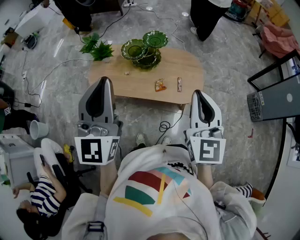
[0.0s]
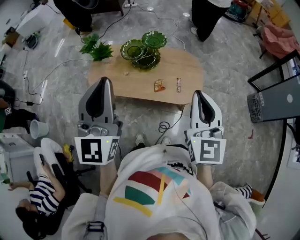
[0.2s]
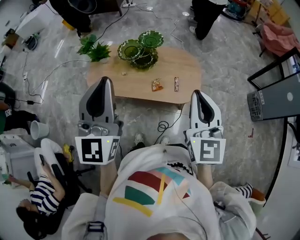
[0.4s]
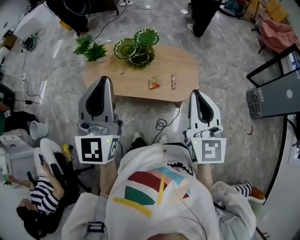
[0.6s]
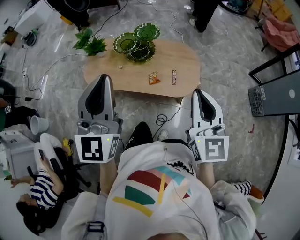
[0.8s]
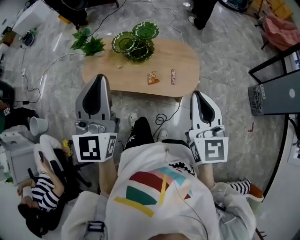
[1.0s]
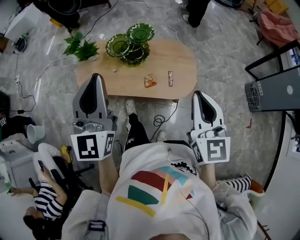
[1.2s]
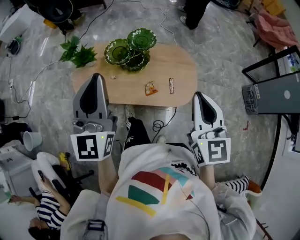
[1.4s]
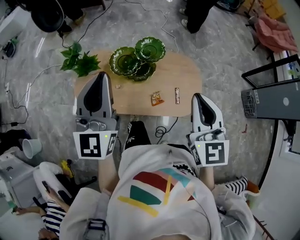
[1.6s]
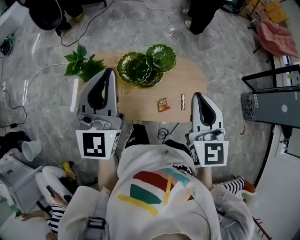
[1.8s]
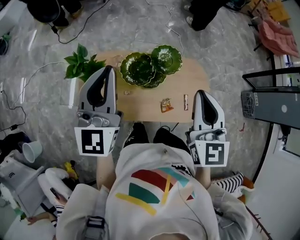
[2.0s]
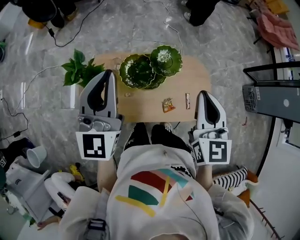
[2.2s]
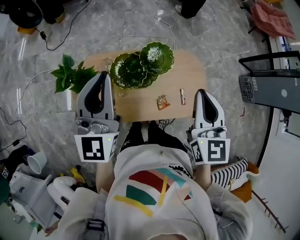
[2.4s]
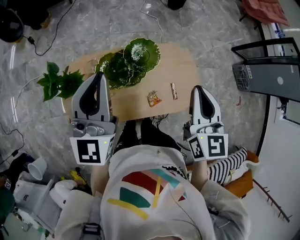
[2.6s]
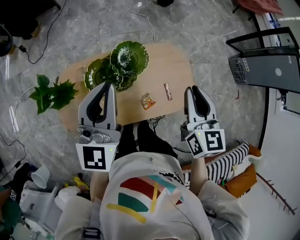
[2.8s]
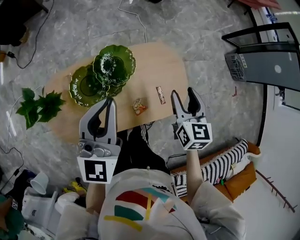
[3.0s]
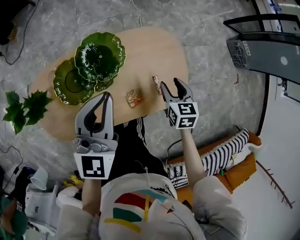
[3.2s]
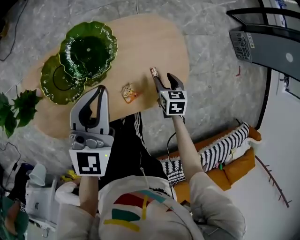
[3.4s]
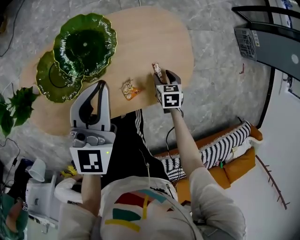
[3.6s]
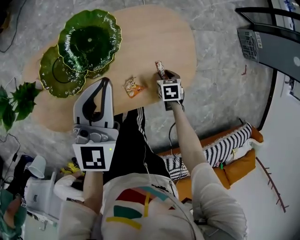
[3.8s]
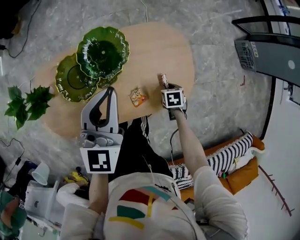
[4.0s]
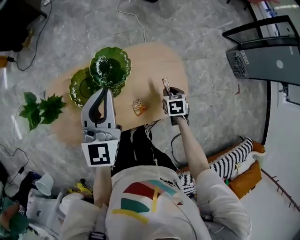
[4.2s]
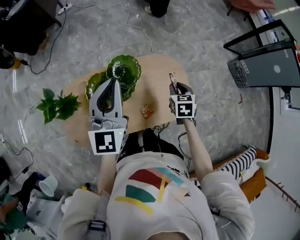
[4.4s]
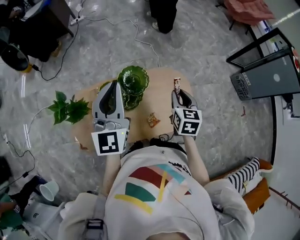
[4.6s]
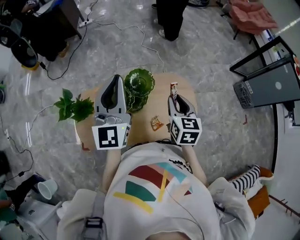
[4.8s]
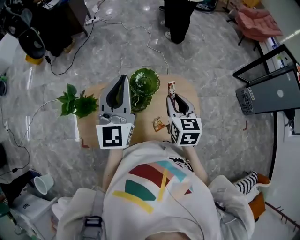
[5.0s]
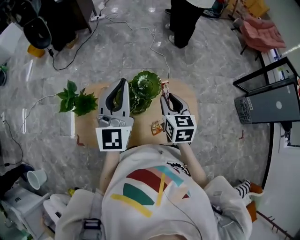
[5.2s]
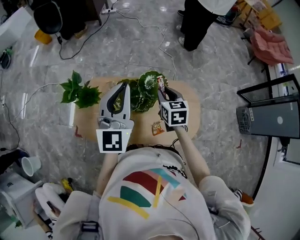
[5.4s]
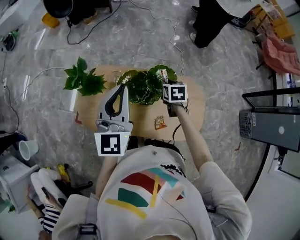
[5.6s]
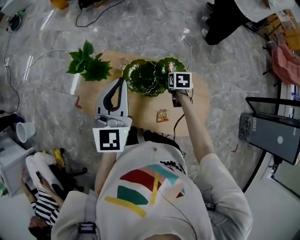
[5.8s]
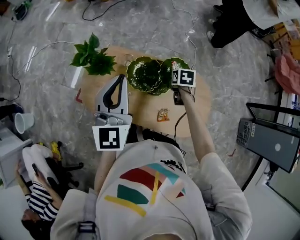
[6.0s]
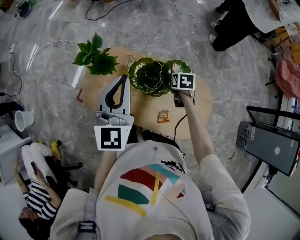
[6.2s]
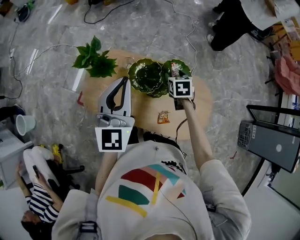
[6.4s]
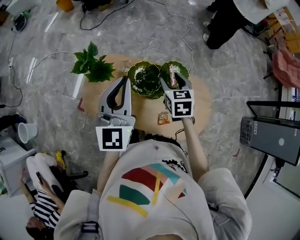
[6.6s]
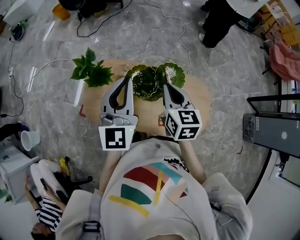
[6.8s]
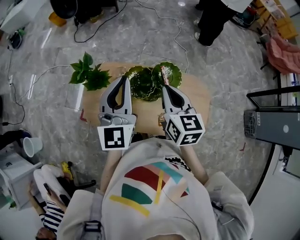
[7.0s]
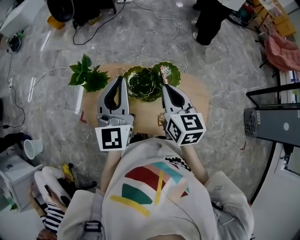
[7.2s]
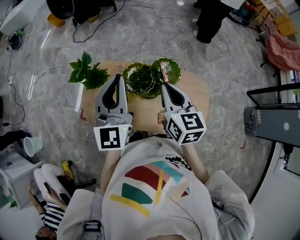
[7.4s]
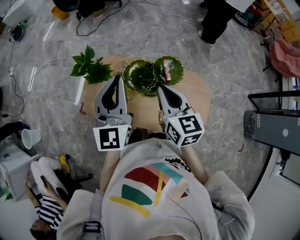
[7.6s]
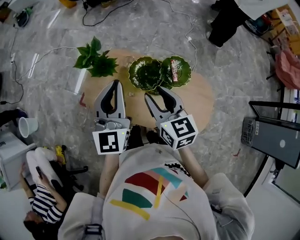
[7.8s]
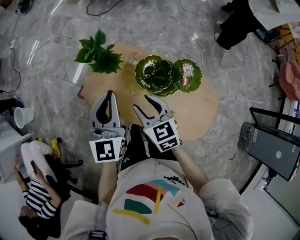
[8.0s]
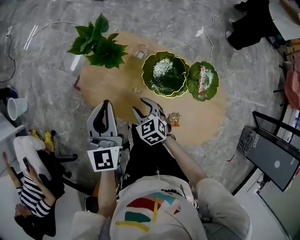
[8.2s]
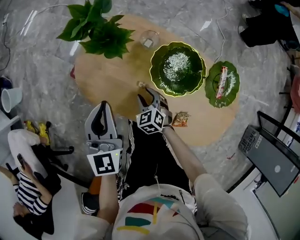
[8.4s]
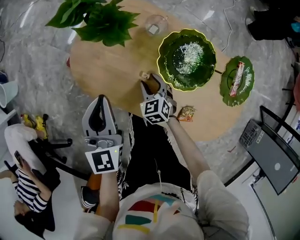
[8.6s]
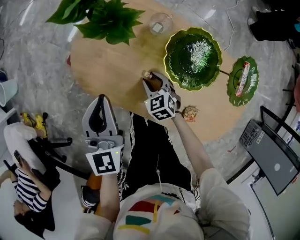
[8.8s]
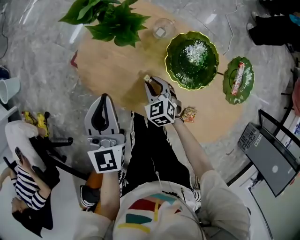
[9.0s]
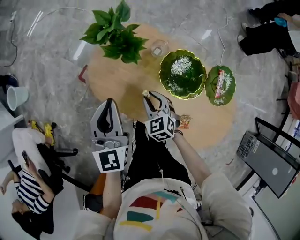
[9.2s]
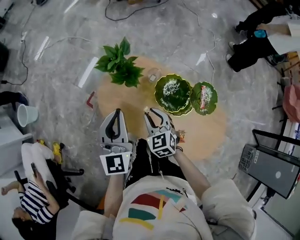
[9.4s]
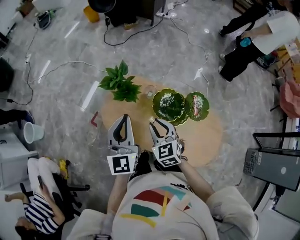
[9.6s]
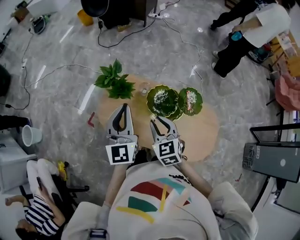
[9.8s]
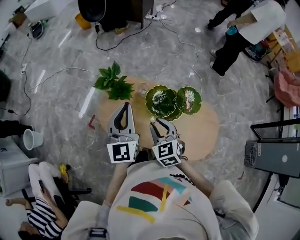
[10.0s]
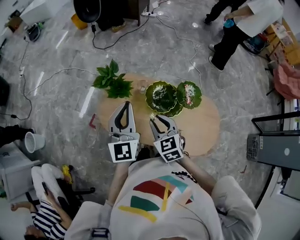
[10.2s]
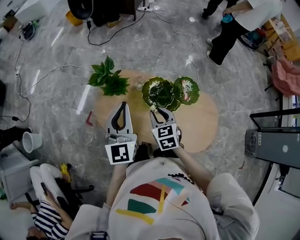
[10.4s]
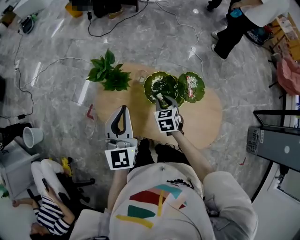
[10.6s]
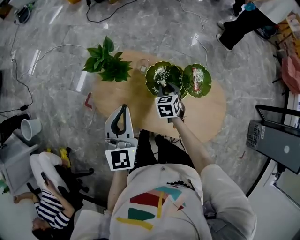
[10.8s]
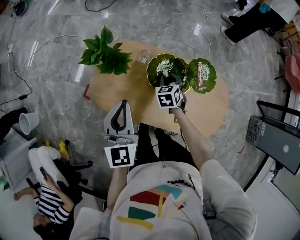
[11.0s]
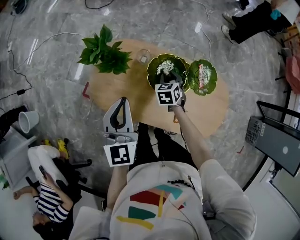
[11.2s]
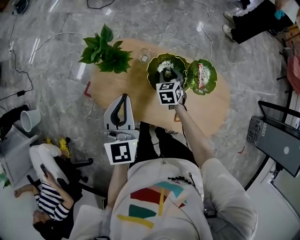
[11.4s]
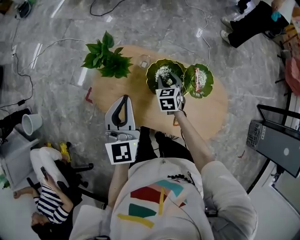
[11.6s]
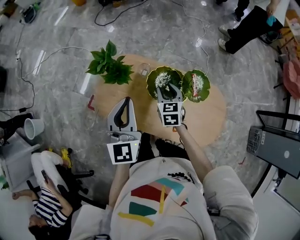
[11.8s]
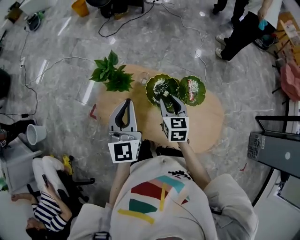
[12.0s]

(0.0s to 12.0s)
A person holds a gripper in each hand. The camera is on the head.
0.0s - 1.6s: The two grippers go roughly 20 cm forward.
1.6s - 3.0s: The right gripper heads downward and forward, covering approximately 25 cm, changes its angle by approximately 40 degrees, and opens; the left gripper heads forward, downward and to the right, covering about 20 cm, and swivels approximately 30 degrees.
3.0s - 4.4s: The left gripper reaches some 15 cm downward, then returns, while the right gripper moves some 40 cm downward and comes back, and closes.
4.4s - 6.0s: The right gripper goes upward and returns, some 20 cm each way, and changes its angle by approximately 30 degrees. The left gripper ends up some 20 cm from where it was, and changes its angle by about 30 degrees.
6.0s - 7.6s: The left gripper changes place by roughly 5 cm. Meanwhile the right gripper moves upward and backward, some 30 cm, tilts its fingers approximately 40 degrees upward, and opens and closes again.
7.6s - 9.0s: The left gripper moves downward and to the left, roughly 35 cm, and swivels roughly 30 degrees. The right gripper shifts roughly 50 cm downward, and angles its fingers downward, by approximately 30 degrees.
9.0s - 10.4s: The grippers both shift upward by some 25 cm. The right gripper turns by roughly 30 degrees, while the left gripper changes its angle by some 20 degrees.
10.4s - 12.0s: The left gripper travels downward and back again, roughly 10 cm each way. Meanwhile the right gripper shifts about 5 cm forward, and moves roughly 15 cm downward and comes back.

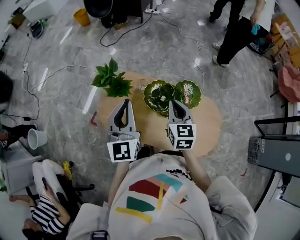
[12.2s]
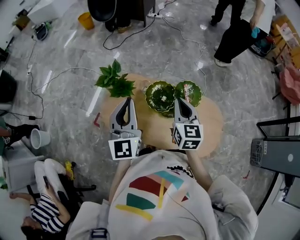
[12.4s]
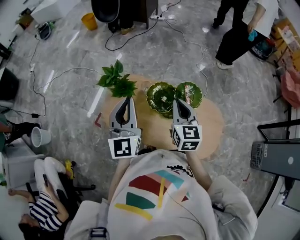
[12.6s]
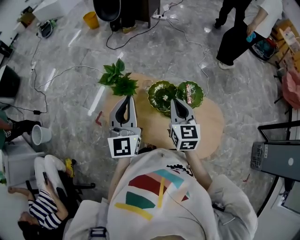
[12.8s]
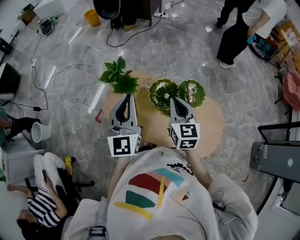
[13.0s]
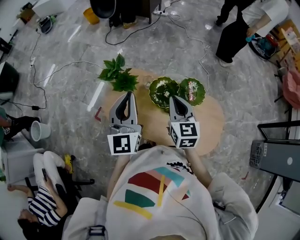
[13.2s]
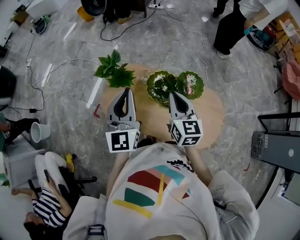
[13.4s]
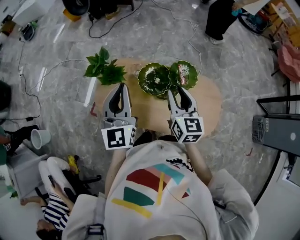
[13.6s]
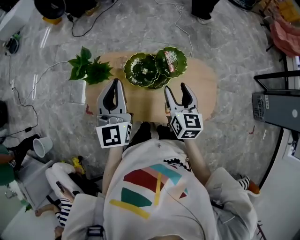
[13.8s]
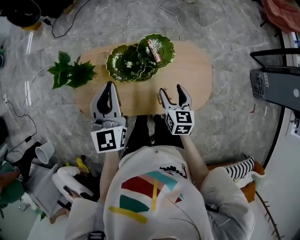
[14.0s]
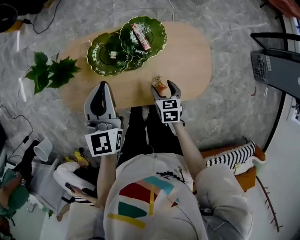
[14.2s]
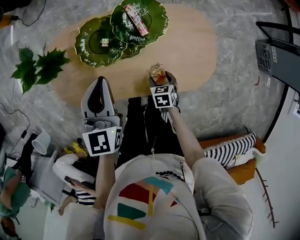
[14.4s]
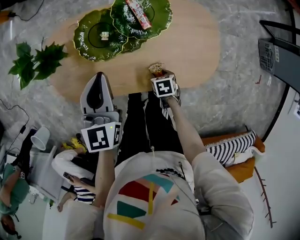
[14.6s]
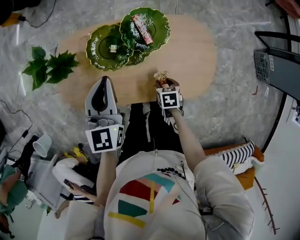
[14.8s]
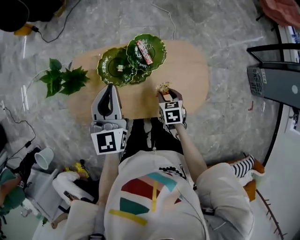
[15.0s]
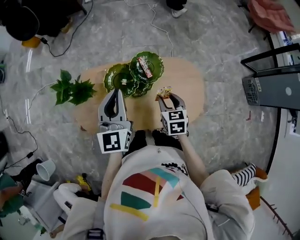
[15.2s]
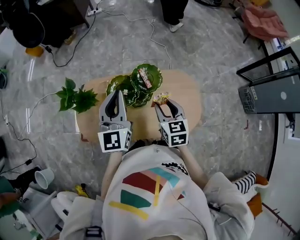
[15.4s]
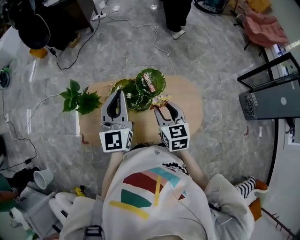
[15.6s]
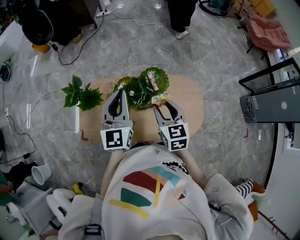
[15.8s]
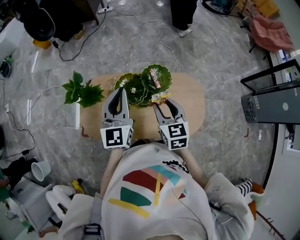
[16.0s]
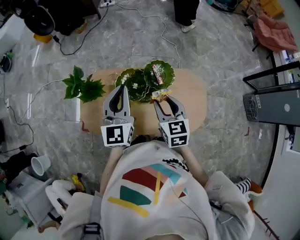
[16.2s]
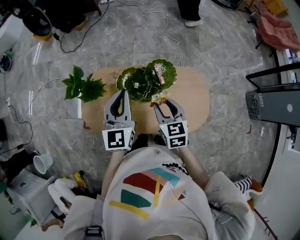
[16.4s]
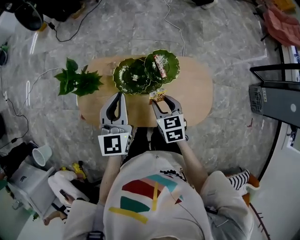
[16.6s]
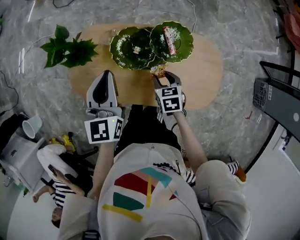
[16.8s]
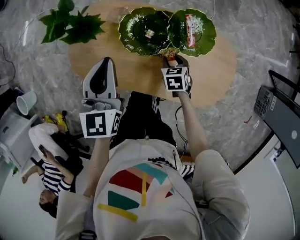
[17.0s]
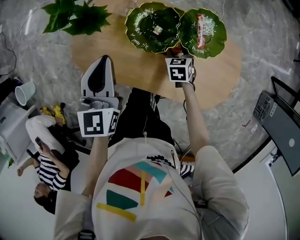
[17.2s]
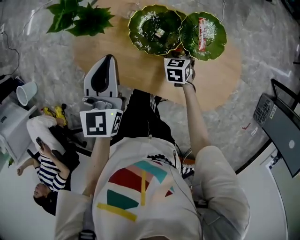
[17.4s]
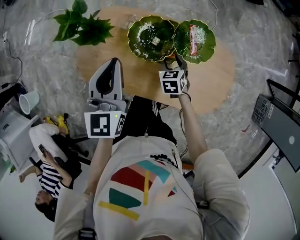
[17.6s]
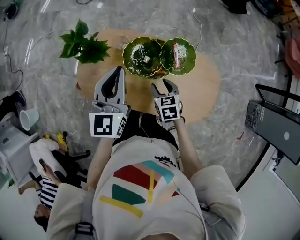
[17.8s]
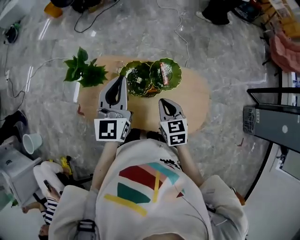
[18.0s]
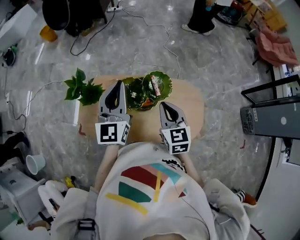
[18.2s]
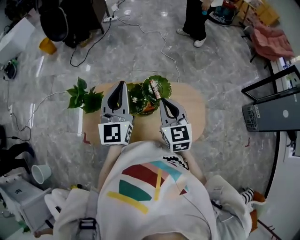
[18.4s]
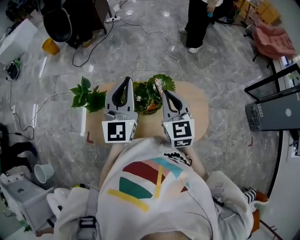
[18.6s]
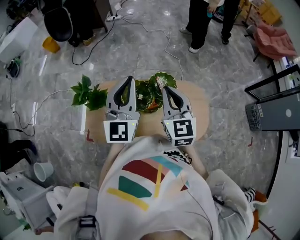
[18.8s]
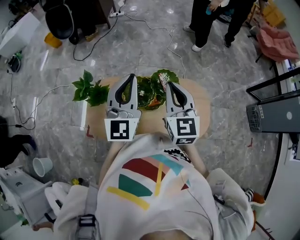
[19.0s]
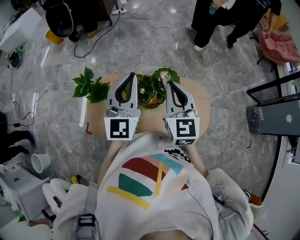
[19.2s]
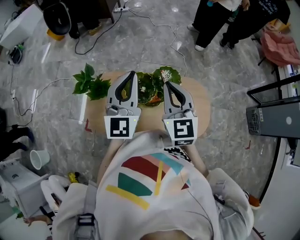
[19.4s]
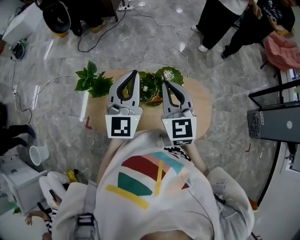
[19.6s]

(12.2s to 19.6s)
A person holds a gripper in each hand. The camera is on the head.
12.2s - 13.6s: There are only small adjustments of the grippers.
13.6s - 15.2s: Both grippers move to the right, approximately 15 cm. The left gripper reaches some 20 cm downward, then returns. Meanwhile the right gripper goes downward and returns, roughly 40 cm each way, swivels roughly 30 degrees, and opens and closes again.
15.2s - 16.6s: The right gripper travels to the left by roughly 10 cm, and goes upward and returns, roughly 15 cm each way. The left gripper shifts by about 5 cm.
16.6s - 18.2s: The two grippers go roughly 10 cm upward. The right gripper closes up.
18.2s - 19.6s: The left gripper moves approximately 5 cm, while the right gripper moves upward, roughly 10 cm.

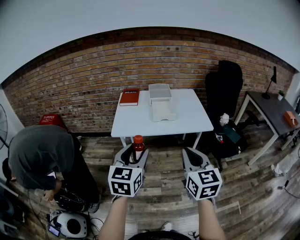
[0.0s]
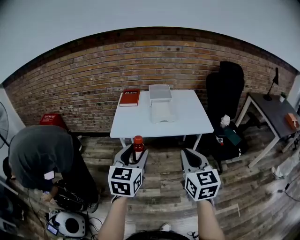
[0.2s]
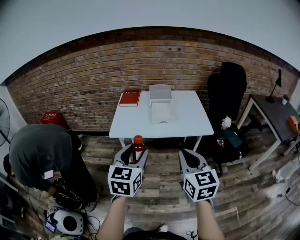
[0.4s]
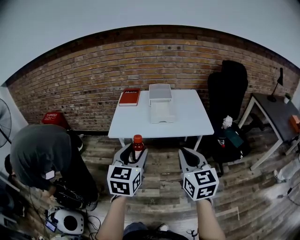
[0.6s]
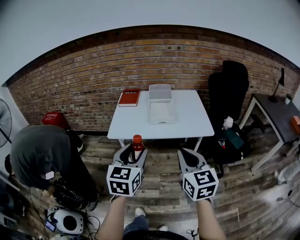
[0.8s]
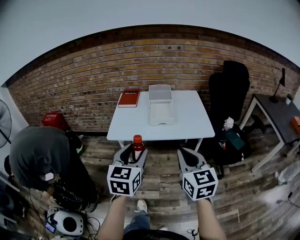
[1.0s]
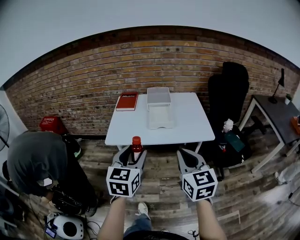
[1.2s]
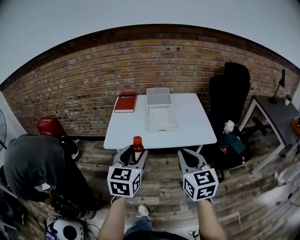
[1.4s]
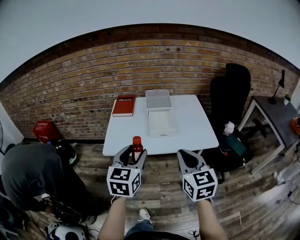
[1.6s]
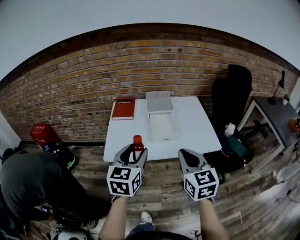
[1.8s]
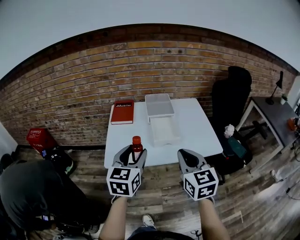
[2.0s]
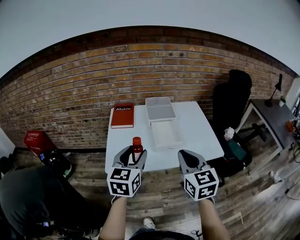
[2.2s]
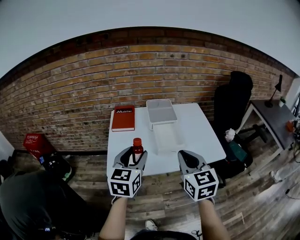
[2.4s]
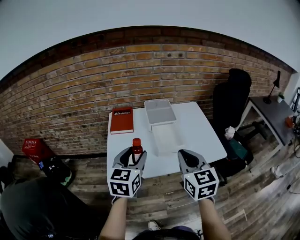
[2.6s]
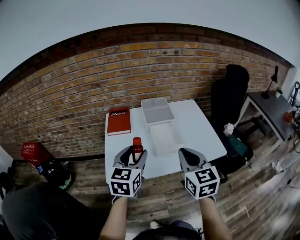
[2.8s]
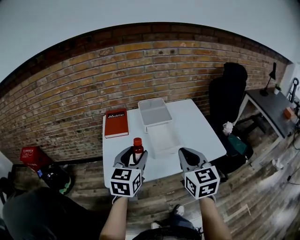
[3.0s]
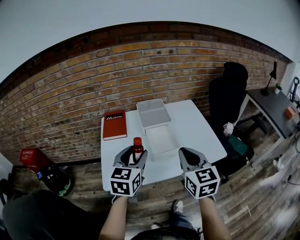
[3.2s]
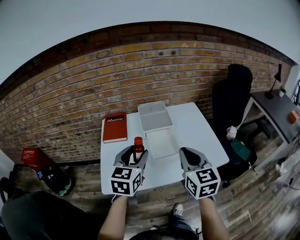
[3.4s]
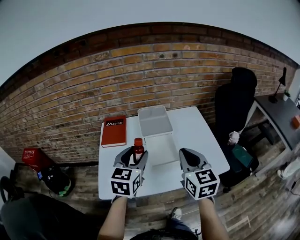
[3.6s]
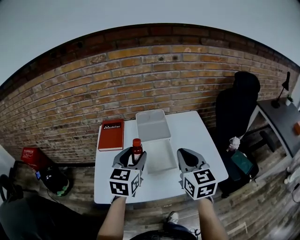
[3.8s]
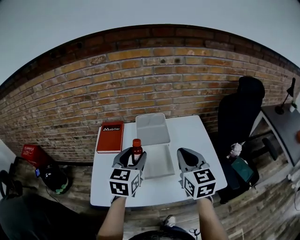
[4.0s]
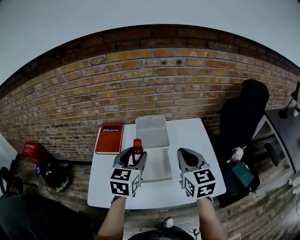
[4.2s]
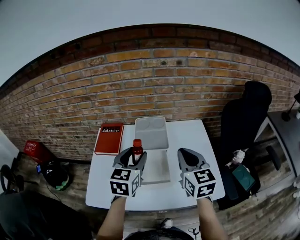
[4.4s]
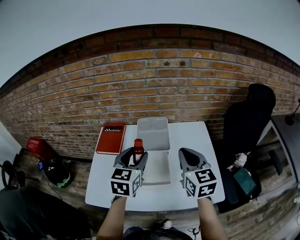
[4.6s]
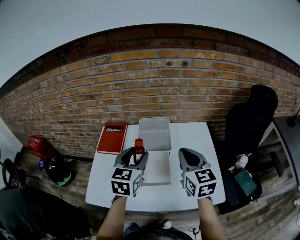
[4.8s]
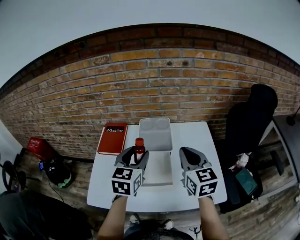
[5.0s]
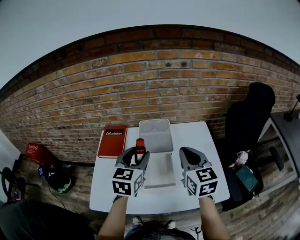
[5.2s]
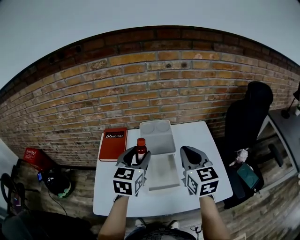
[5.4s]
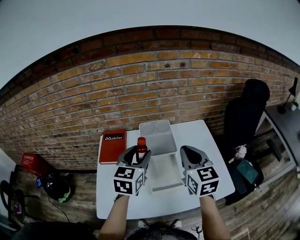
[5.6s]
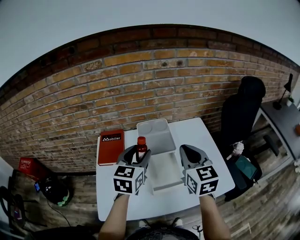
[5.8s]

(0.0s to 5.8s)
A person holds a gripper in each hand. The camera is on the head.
0.0s - 1.4s: The grippers both shift forward by approximately 10 cm.
1.4s - 2.8s: The two grippers go some 20 cm forward and to the left.
2.8s - 4.4s: Both grippers move forward and to the right, about 25 cm.
4.4s - 5.8s: The left gripper changes place by approximately 5 cm. Meanwhile the right gripper travels to the left by about 5 cm.
